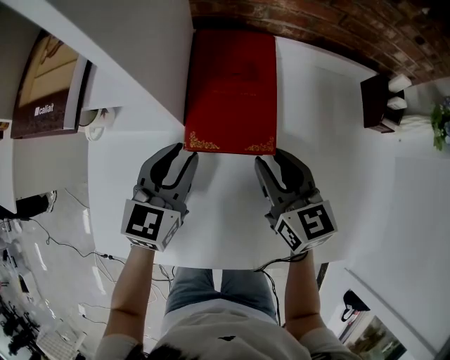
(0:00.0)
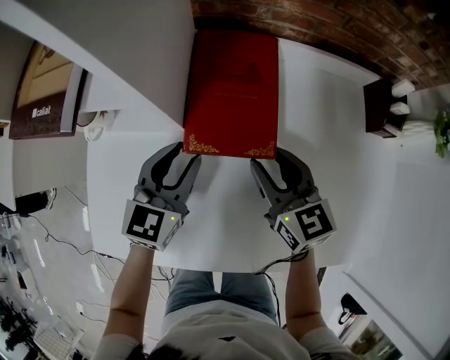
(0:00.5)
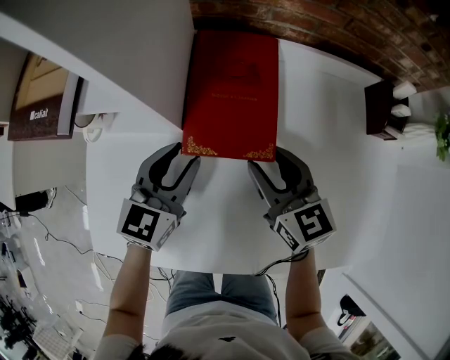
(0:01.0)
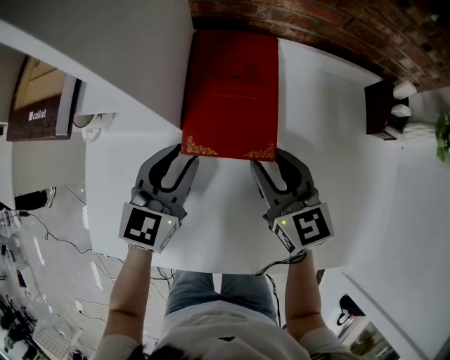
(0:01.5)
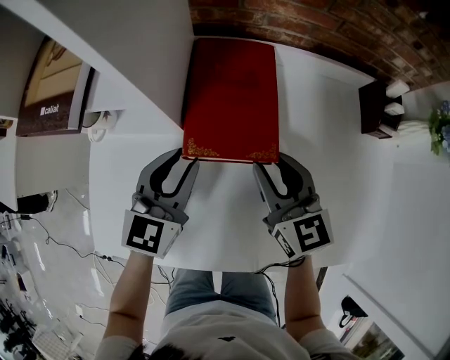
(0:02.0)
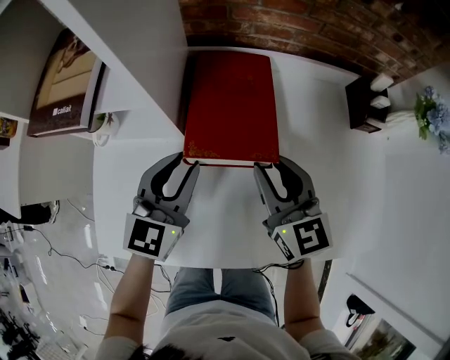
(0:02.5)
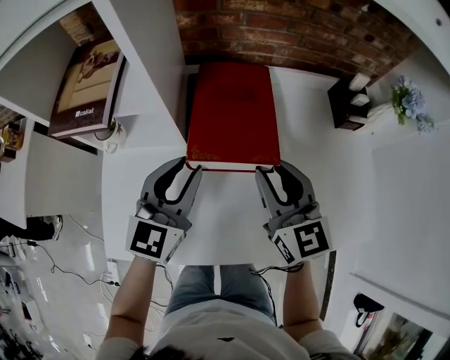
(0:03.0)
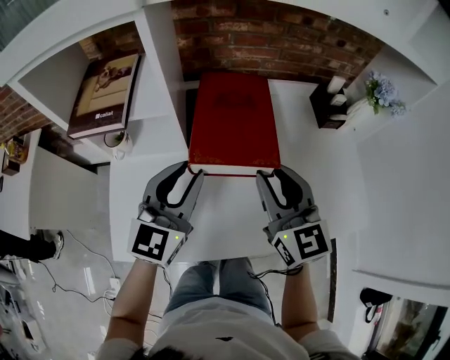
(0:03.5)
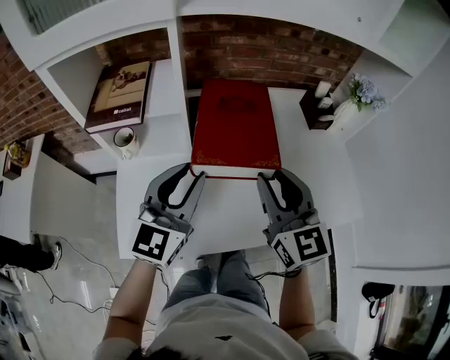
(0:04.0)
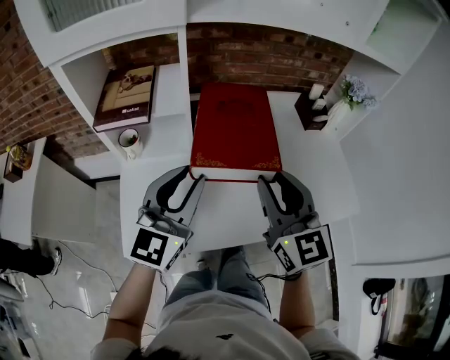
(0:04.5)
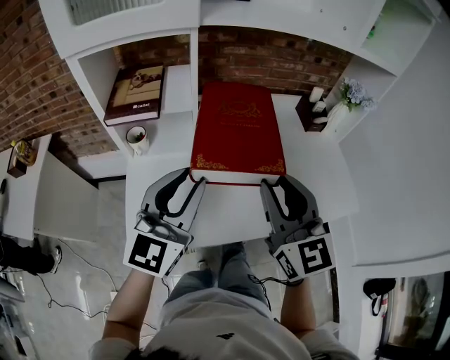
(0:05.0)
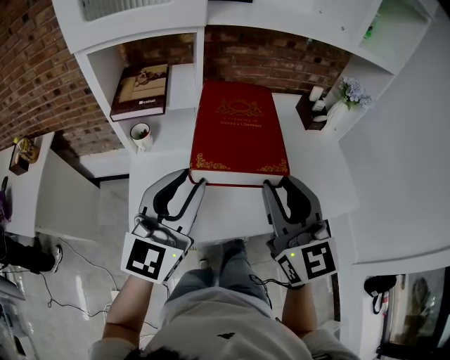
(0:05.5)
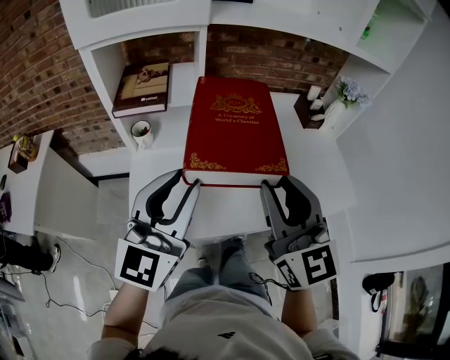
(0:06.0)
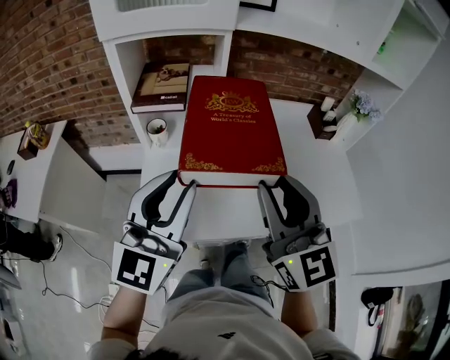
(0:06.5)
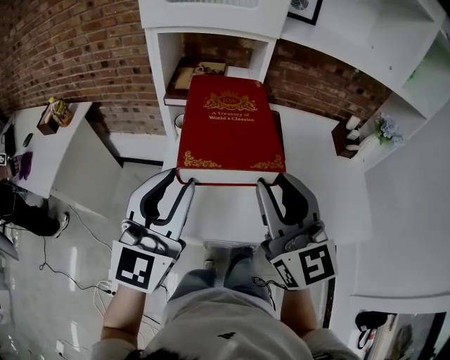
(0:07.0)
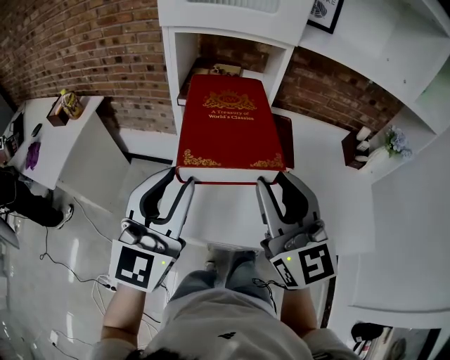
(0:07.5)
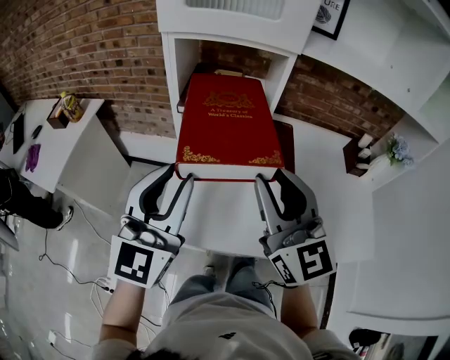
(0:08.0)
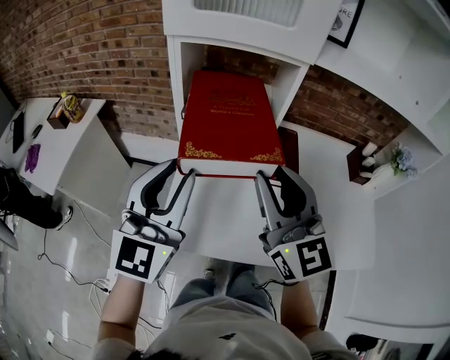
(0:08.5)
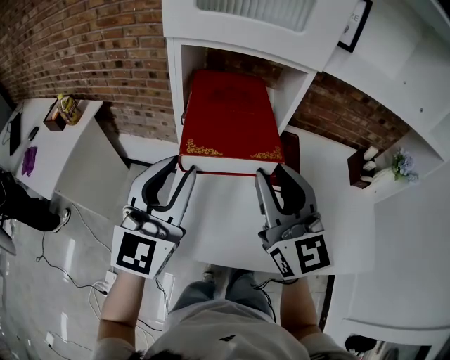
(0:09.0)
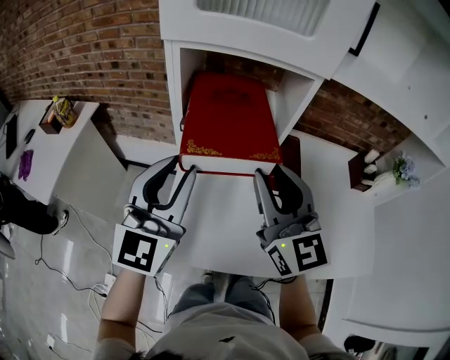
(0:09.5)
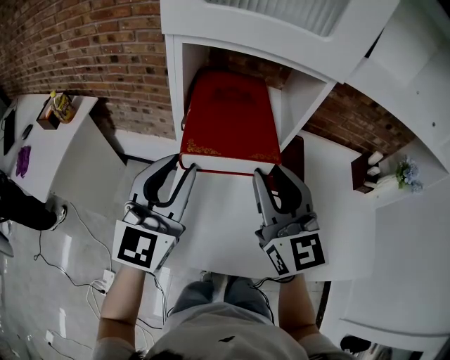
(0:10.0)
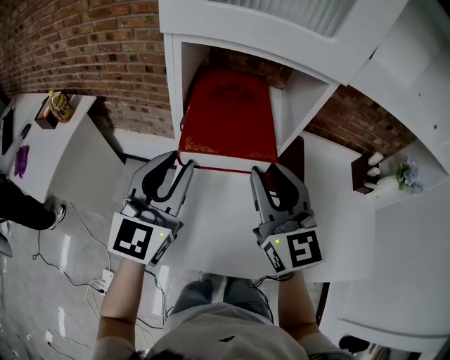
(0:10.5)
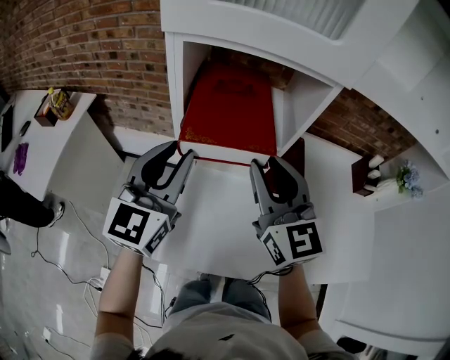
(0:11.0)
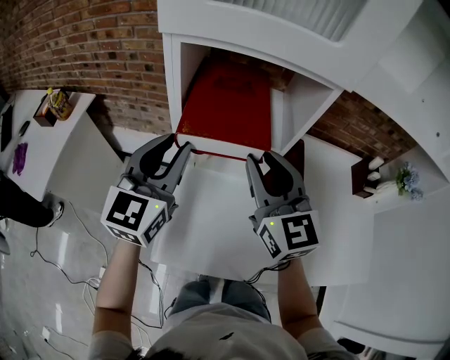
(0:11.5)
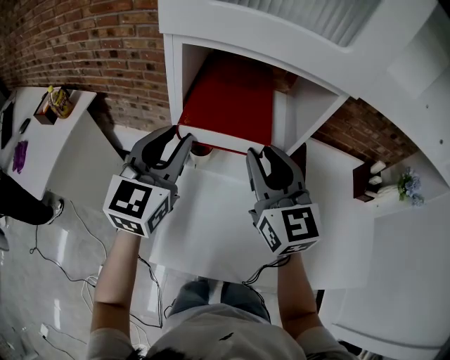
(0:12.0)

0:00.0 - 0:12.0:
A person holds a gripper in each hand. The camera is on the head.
0:00.0 - 0:02.0: The grippers move only a little.
0:02.0 - 0:04.0: Both grippers move upward and backward, roughly 20 cm. The right gripper swivels about 20 degrees. Meanwhile the left gripper turns by roughly 20 degrees.
0:04.0 - 0:06.0: The grippers both shift backward and upward by some 15 cm.
0:06.0 - 0:08.0: The left gripper is displaced to the left by about 10 cm, and changes its angle by about 20 degrees. The right gripper shifts about 15 cm to the left and forward.
0:08.0 - 0:10.0: The grippers both shift forward by approximately 10 cm.
0:10.0 - 0:12.0: The two grippers go some 10 cm forward.

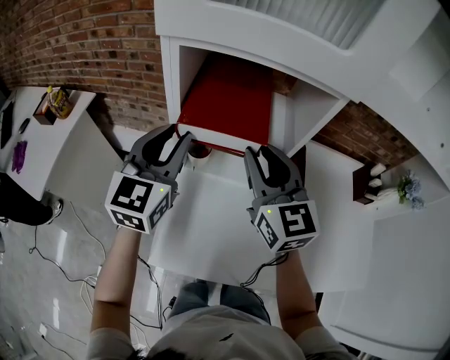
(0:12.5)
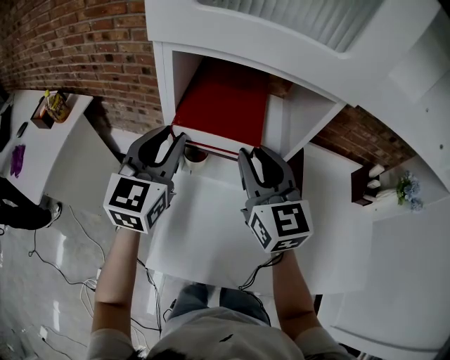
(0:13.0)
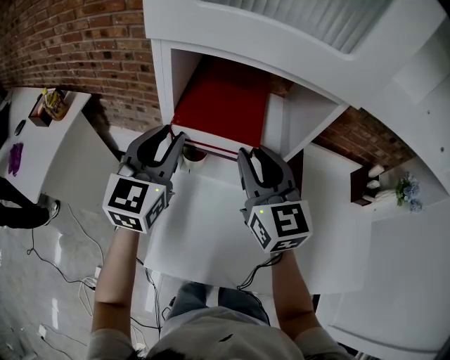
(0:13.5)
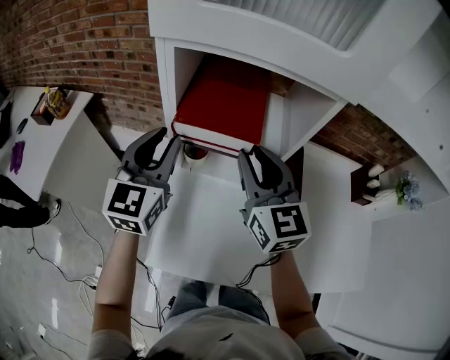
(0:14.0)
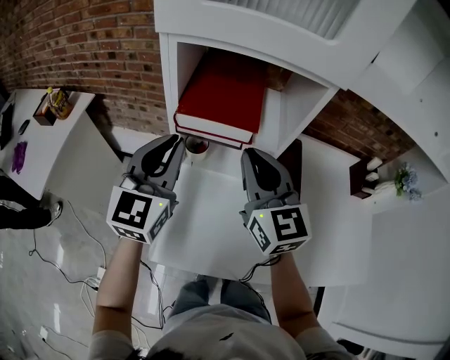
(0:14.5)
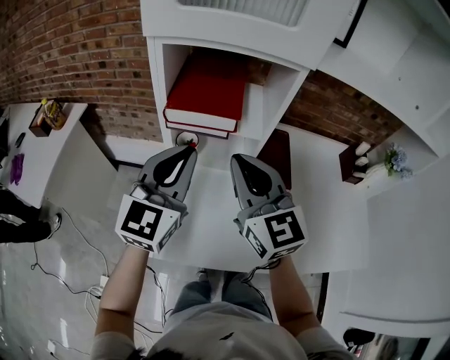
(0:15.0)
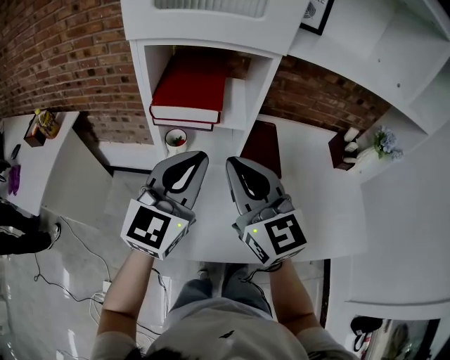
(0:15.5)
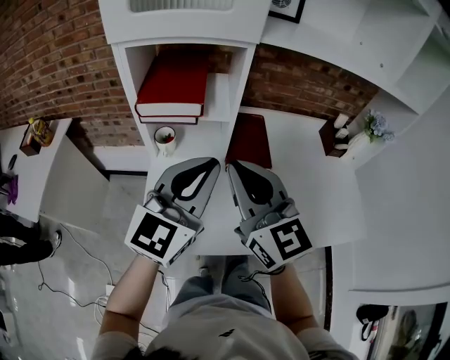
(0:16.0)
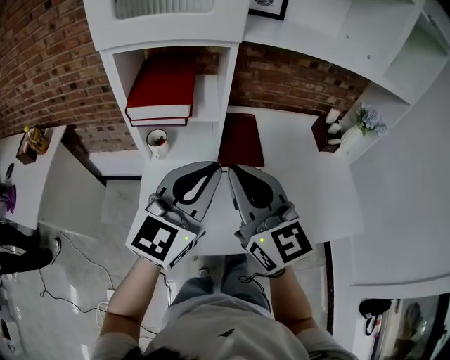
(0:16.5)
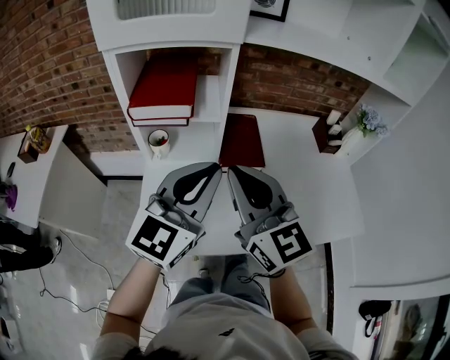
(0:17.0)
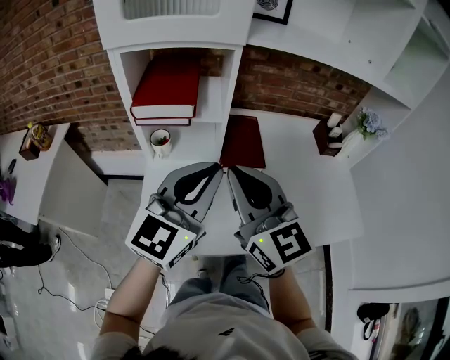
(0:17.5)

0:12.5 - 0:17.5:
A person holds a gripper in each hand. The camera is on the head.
0:12.5 - 0:15.0: The left gripper shifts roughly 10 cm backward and to the right, and closes; the right gripper goes about 10 cm backward, and closes.
0:15.0 - 0:17.5: The right gripper heads backward and to the right, covering approximately 10 cm. The left gripper goes roughly 15 cm to the right and backward.

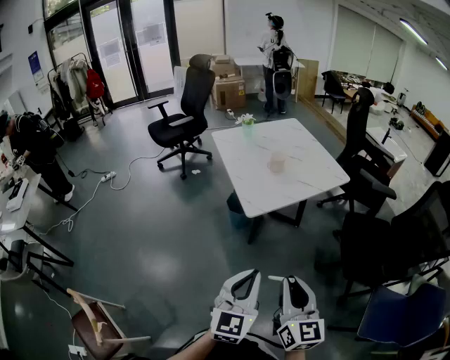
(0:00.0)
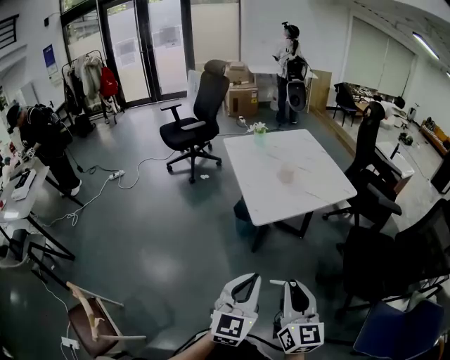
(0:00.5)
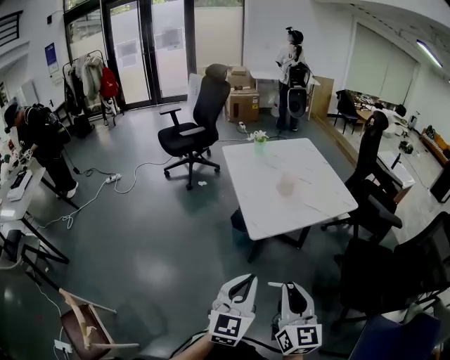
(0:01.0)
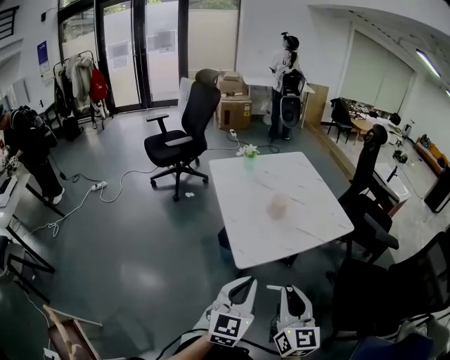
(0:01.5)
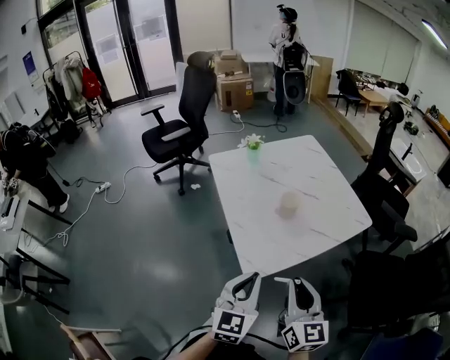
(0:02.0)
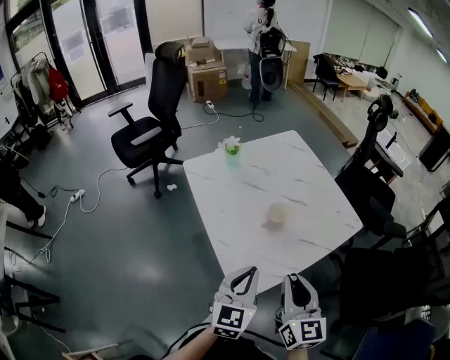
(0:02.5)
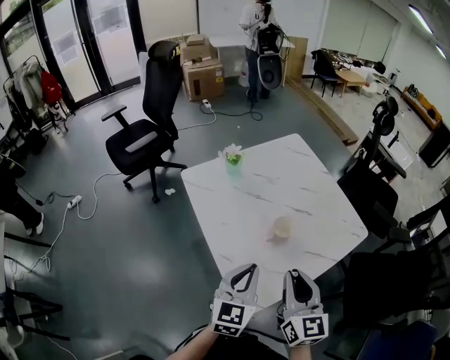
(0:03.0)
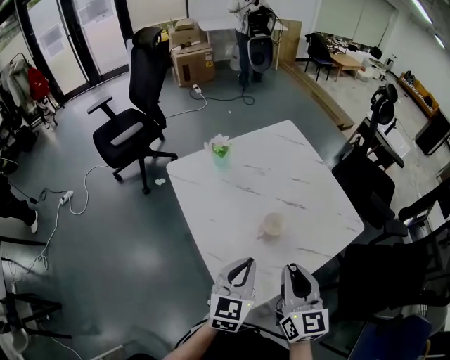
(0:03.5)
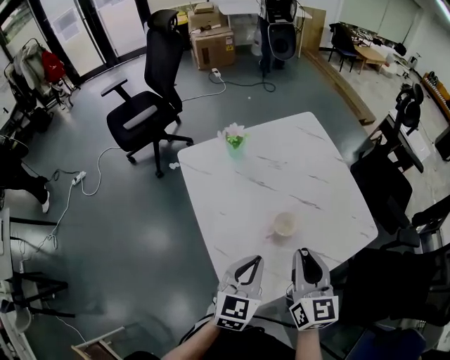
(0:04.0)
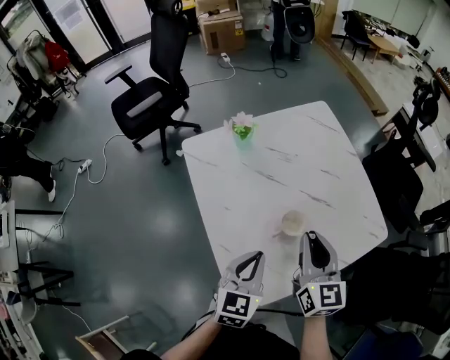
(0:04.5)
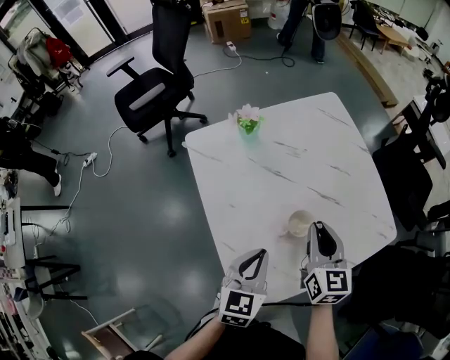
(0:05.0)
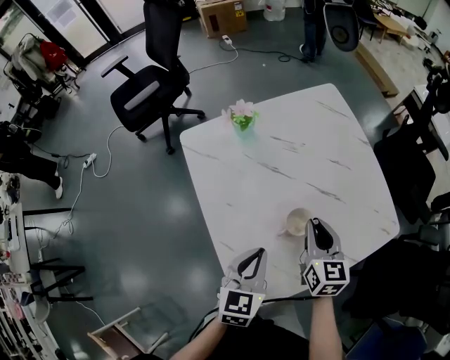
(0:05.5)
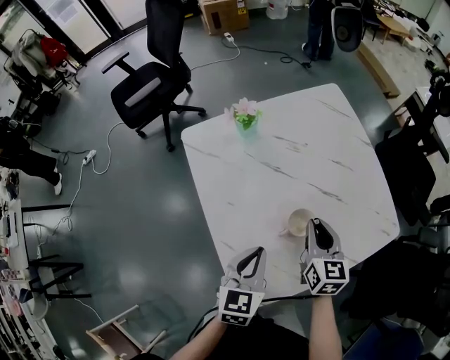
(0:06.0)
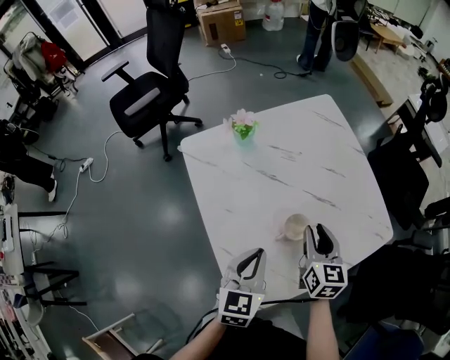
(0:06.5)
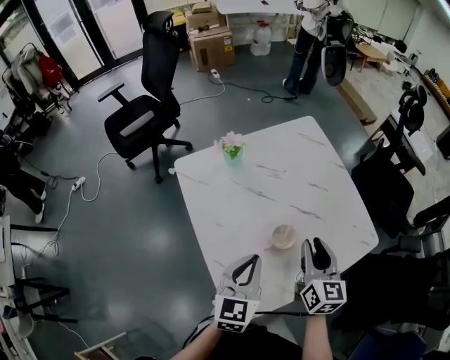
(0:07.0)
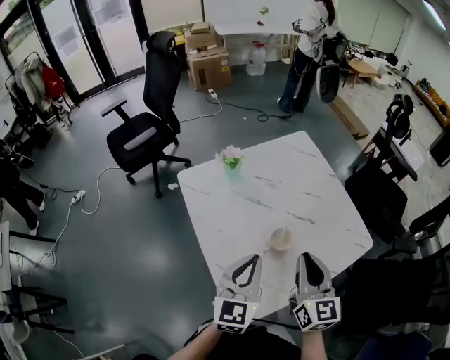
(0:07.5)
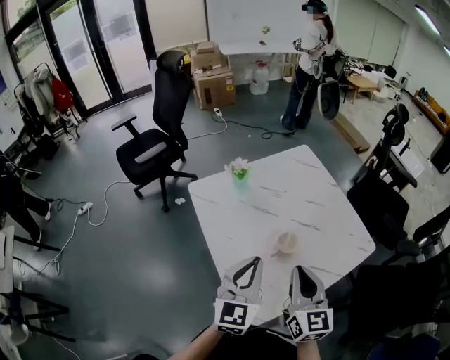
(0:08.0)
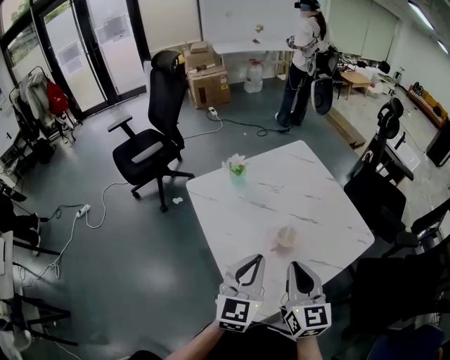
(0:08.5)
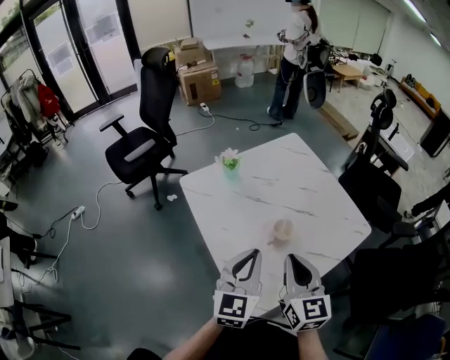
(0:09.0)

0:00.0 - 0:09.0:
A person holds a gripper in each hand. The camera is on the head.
0:00.0 - 0:02.0: Both grippers travel together forward, some 30 cm.
0:02.0 - 0:04.5: The grippers both shift forward by some 30 cm.
0:04.5 - 0:07.0: The right gripper goes downward and returns, about 10 cm each way.
0:07.0 - 0:09.0: The right gripper goes some 15 cm backward, to the left and upward, and closes; the left gripper heads upward, covering about 5 cm.

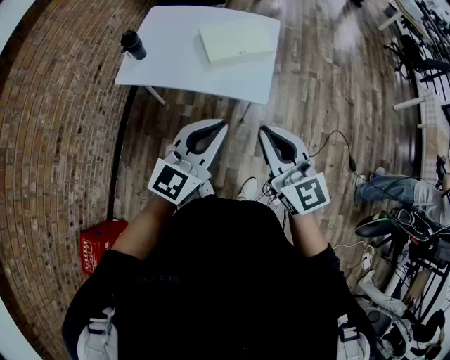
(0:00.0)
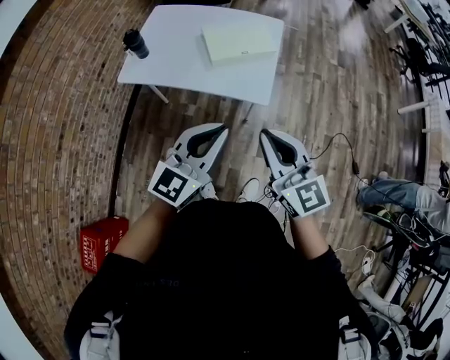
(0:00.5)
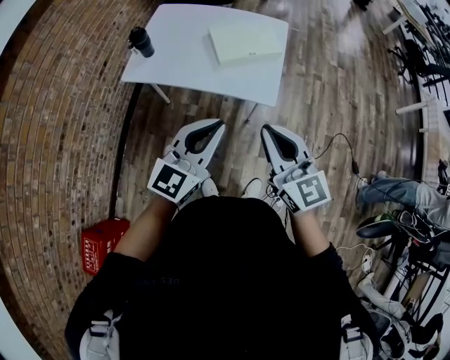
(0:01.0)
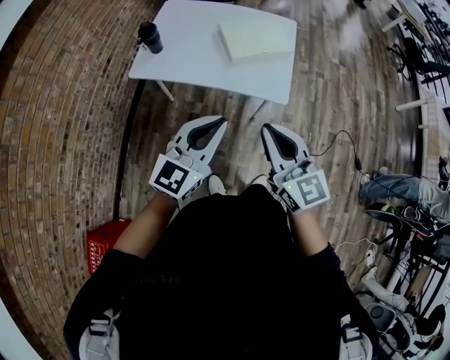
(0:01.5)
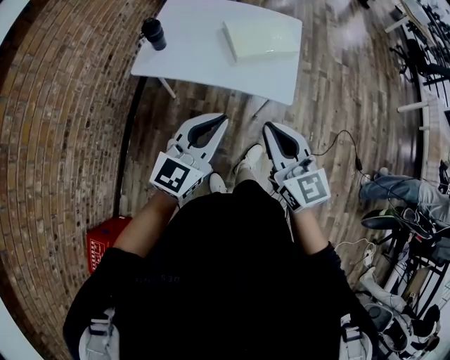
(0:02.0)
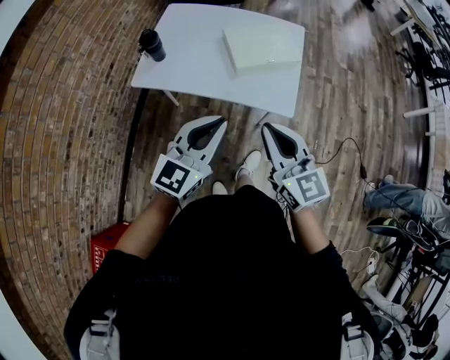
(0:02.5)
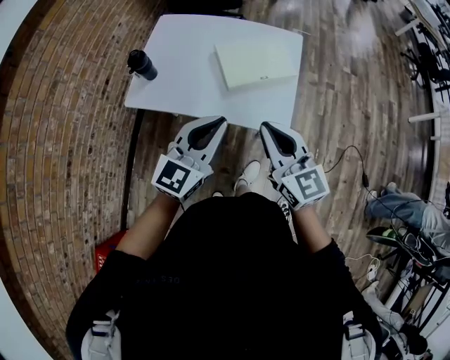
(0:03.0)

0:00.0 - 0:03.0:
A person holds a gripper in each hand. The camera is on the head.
0:00.0 - 0:01.5: Both grippers travel together to the left, about 10 cm.
0:01.5 - 0:03.0: The grippers both shift forward by some 15 cm.
